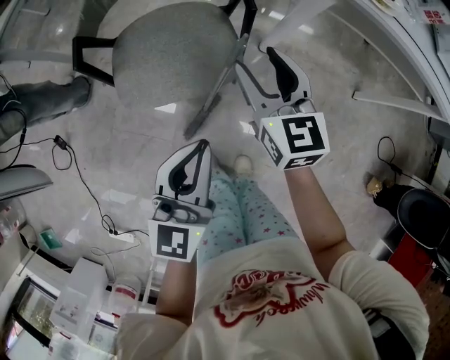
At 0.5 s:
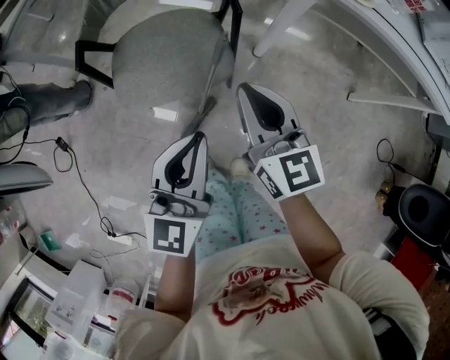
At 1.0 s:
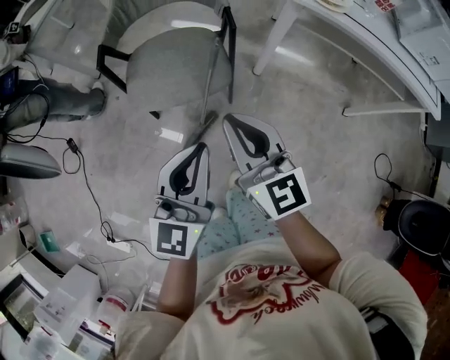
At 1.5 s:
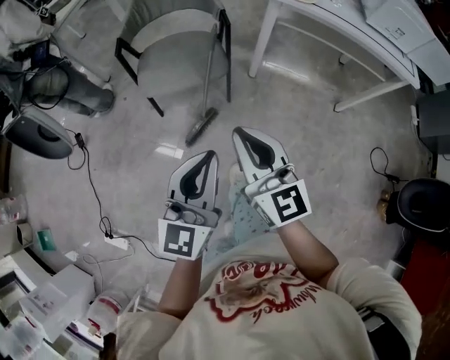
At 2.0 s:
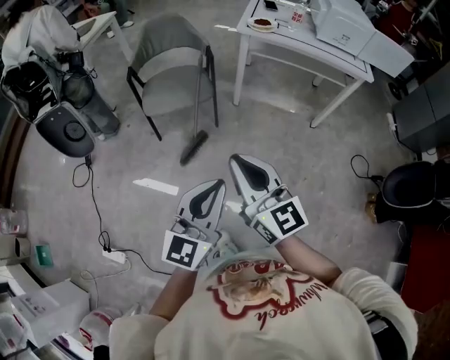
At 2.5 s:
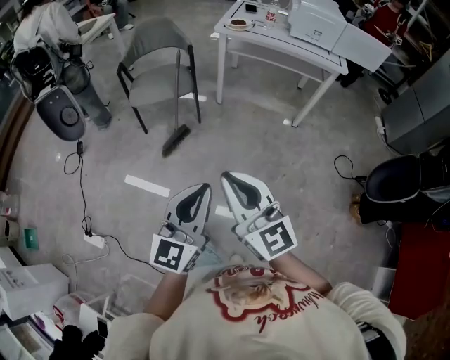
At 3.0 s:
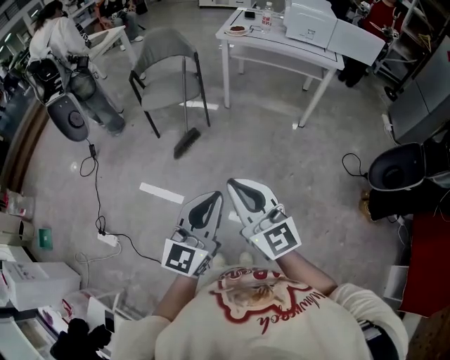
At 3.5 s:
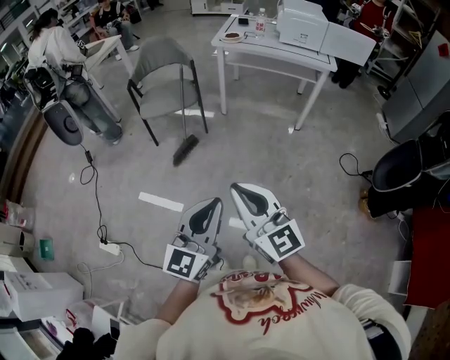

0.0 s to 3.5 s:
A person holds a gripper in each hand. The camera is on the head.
0.0 to 2.0 s: The pair of grippers is taken backward, approximately 50 cm. Both grippers move upward, about 25 cm. The right gripper changes its angle by roughly 20 degrees, and closes its fingers.
2.0 to 3.5 s: Both grippers move backward and to the right, roughly 25 cm.

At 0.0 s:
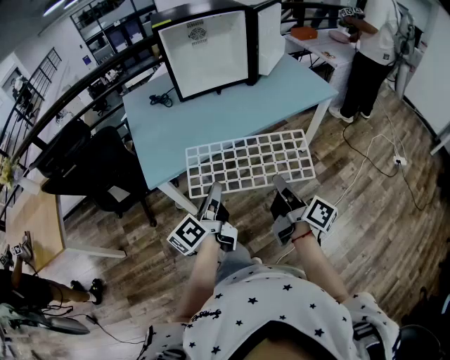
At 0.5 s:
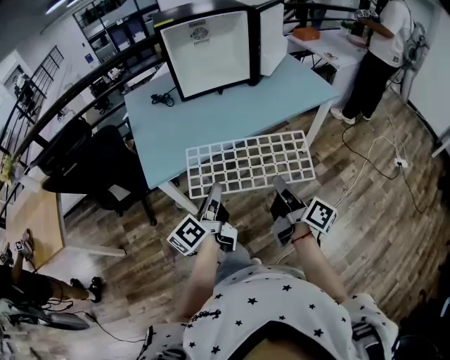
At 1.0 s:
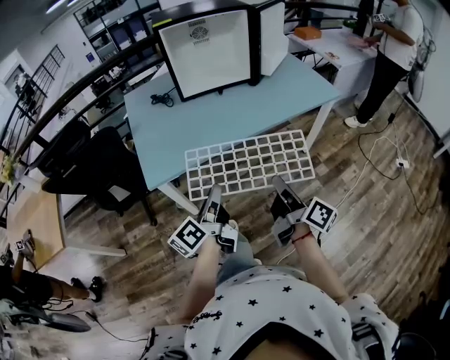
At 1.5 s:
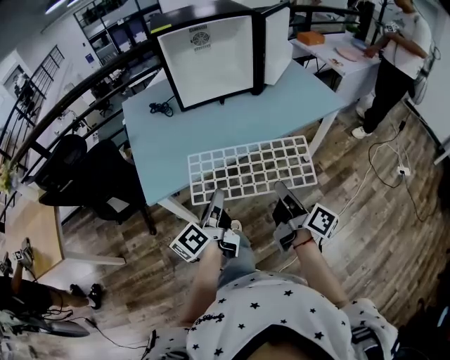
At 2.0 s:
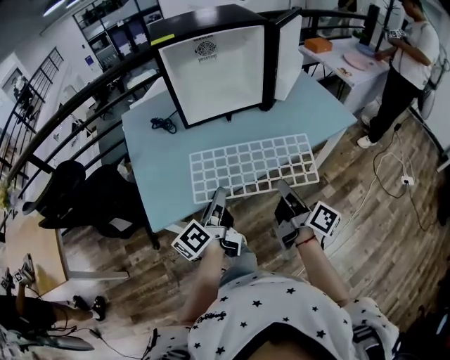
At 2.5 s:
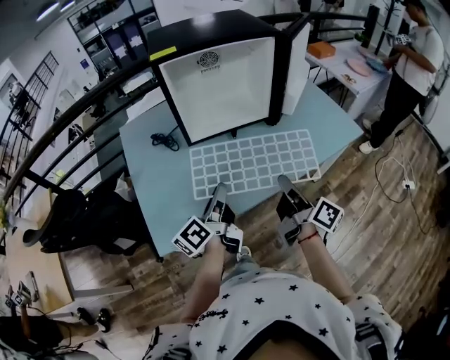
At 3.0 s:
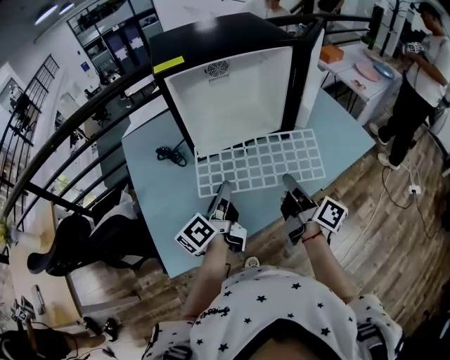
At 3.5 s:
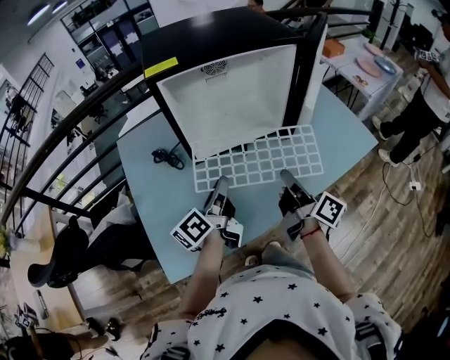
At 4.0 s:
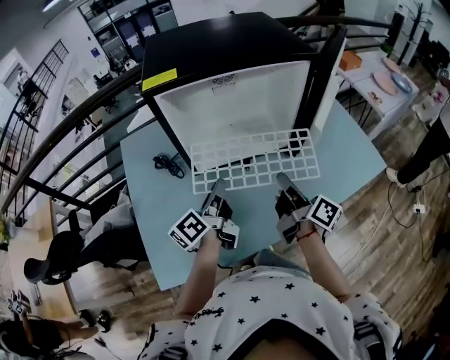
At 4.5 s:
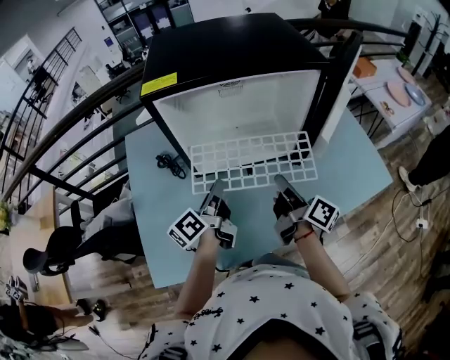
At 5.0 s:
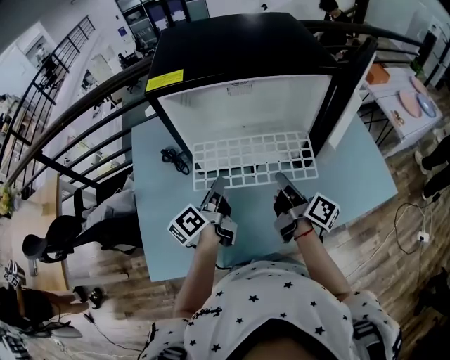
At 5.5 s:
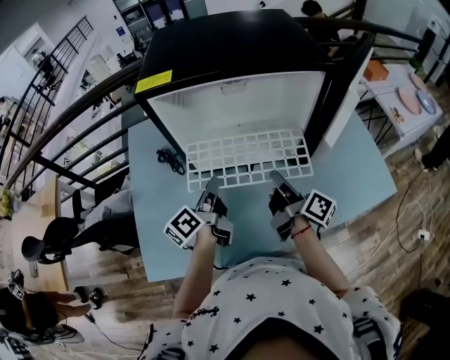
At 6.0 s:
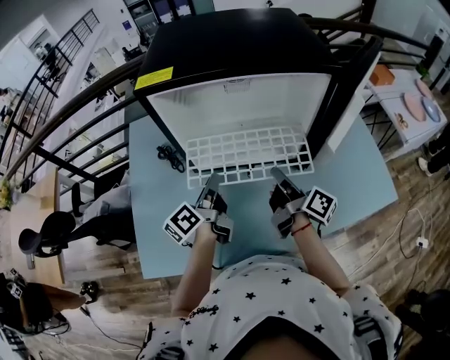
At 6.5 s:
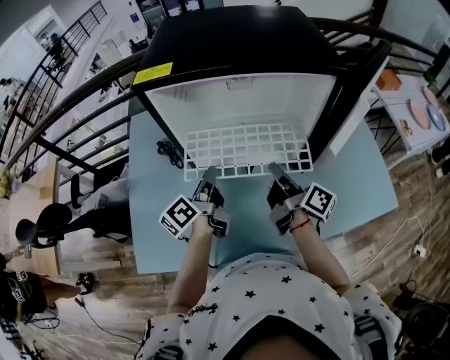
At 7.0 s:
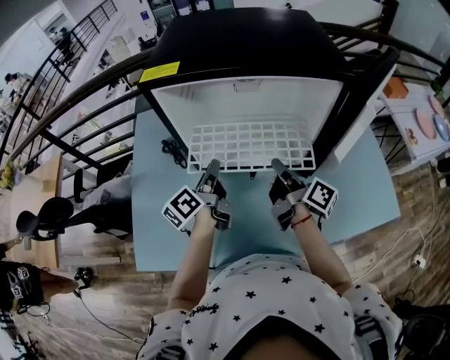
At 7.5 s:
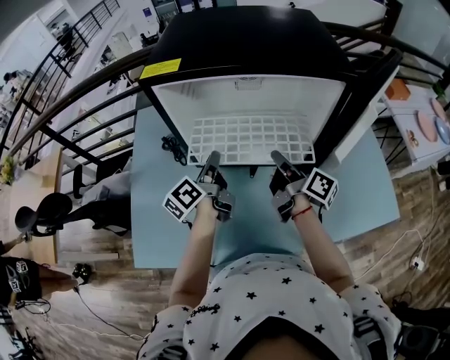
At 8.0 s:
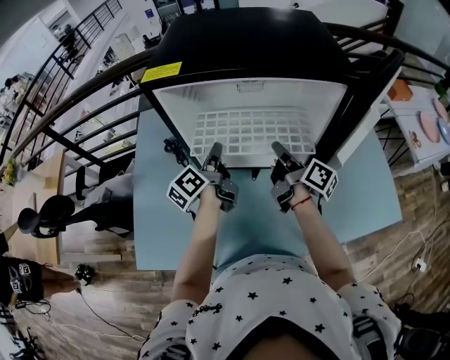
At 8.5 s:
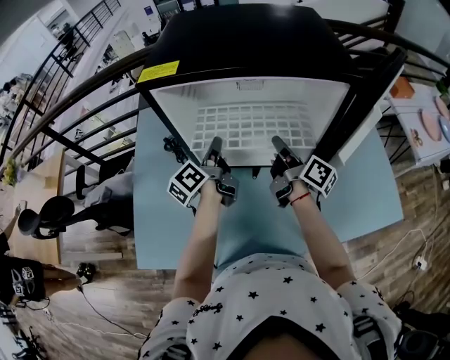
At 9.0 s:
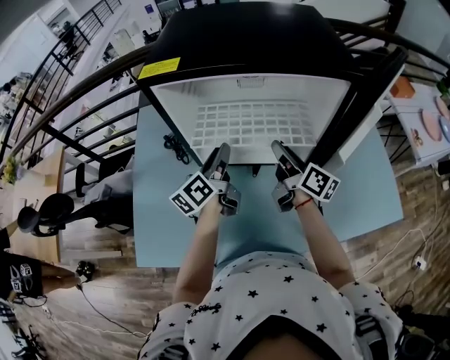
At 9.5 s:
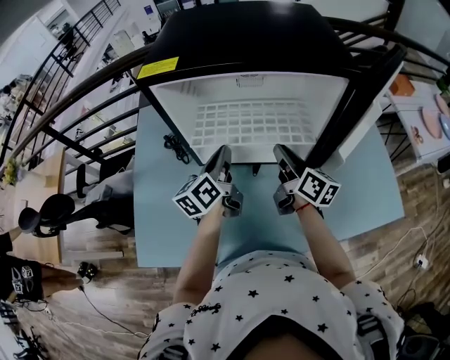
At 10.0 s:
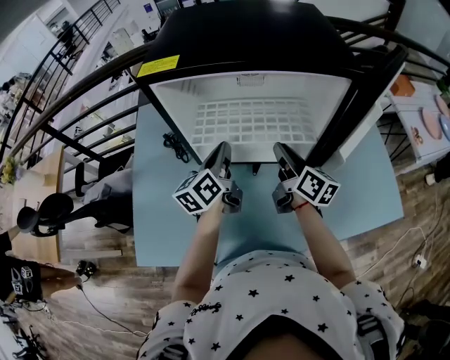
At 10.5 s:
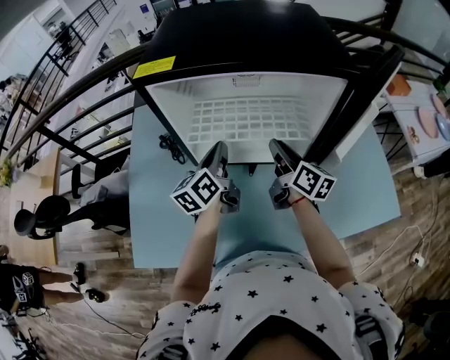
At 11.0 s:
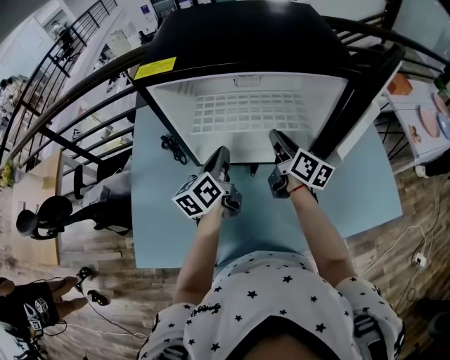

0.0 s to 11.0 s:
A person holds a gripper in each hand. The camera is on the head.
0.0 to 2.0 s: The two grippers go some 20 cm forward.
2.0 to 3.5 s: Both grippers move forward, roughly 25 cm.
3.5 to 5.5 s: The right gripper heads forward, covering approximately 10 cm. Meanwhile the left gripper is displaced forward by roughly 10 cm.
5.5 to 7.5 s: The two grippers go approximately 5 cm forward.
7.5 to 9.0 s: The grippers make only small movements.
9.0 to 11.0 s: The left gripper closes up.

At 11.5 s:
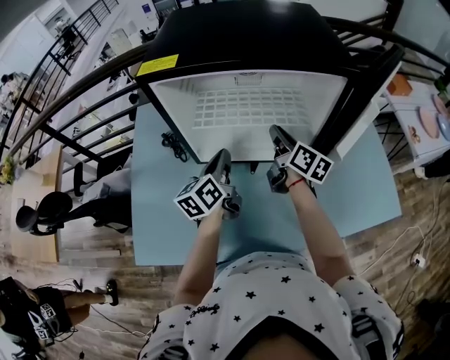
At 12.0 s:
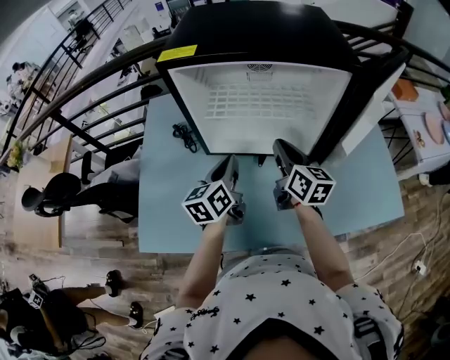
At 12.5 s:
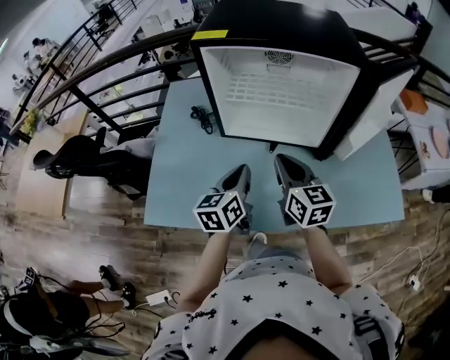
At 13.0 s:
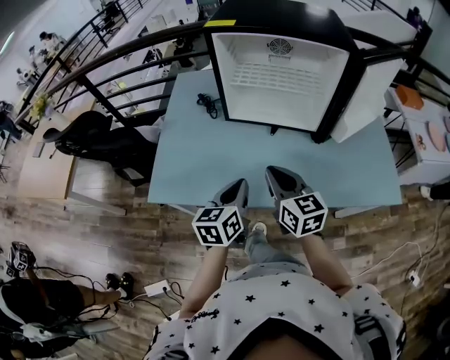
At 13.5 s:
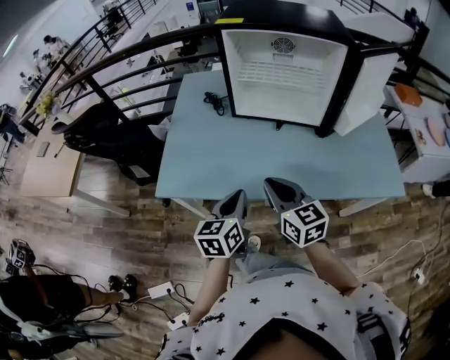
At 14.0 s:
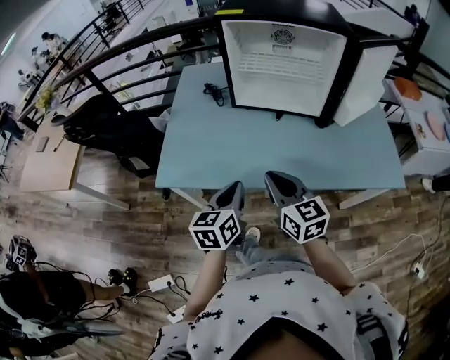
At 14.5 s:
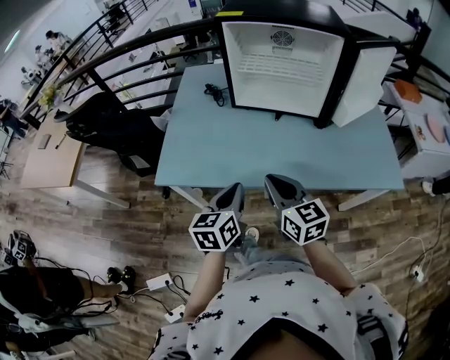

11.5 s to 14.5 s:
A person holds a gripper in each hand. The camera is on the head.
11.5 to 13.0 s: The grippers both shift backward by approximately 30 cm. The right gripper swivels roughly 40 degrees.
13.0 to 14.5 s: Both grippers travel together backward, about 10 cm.

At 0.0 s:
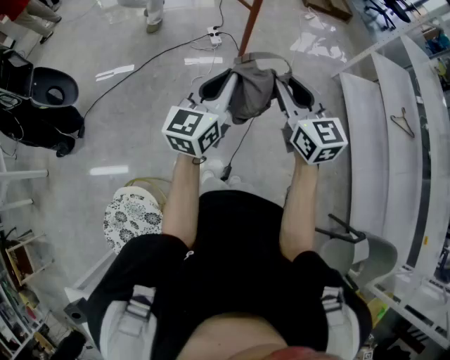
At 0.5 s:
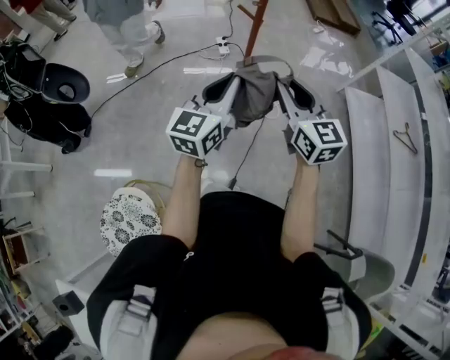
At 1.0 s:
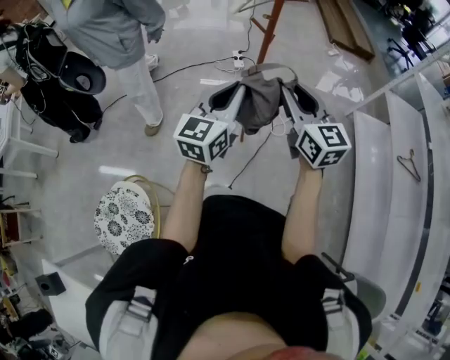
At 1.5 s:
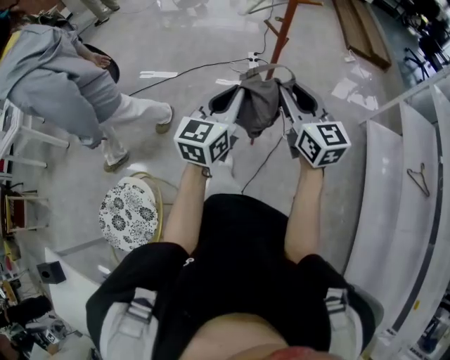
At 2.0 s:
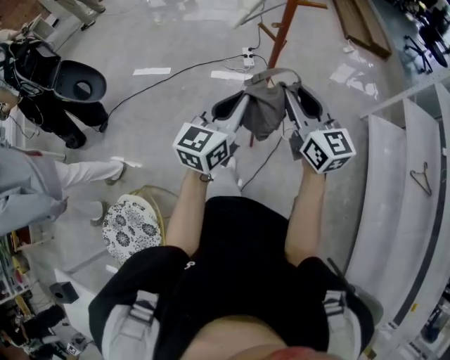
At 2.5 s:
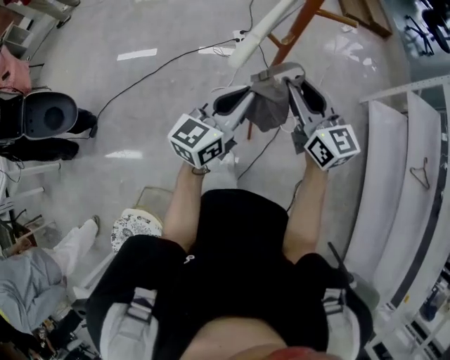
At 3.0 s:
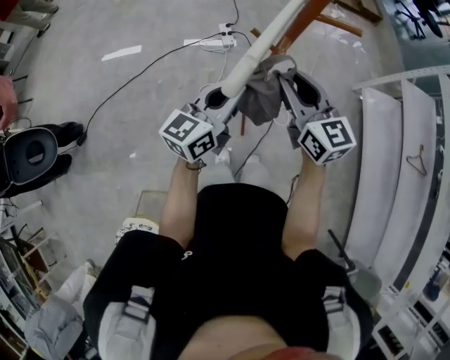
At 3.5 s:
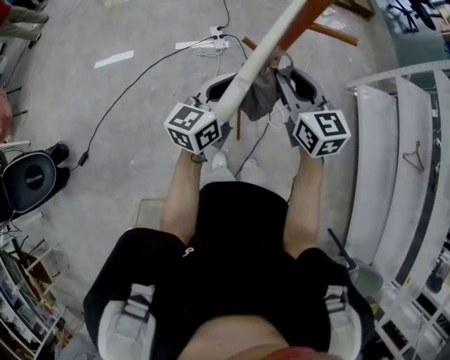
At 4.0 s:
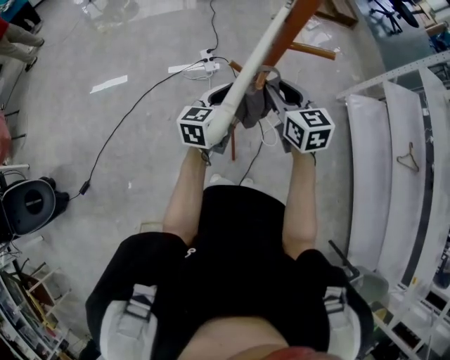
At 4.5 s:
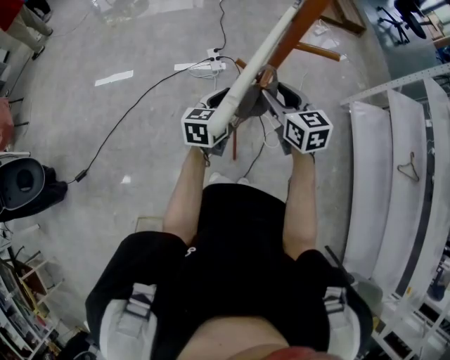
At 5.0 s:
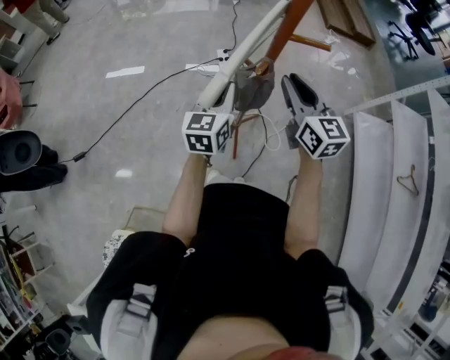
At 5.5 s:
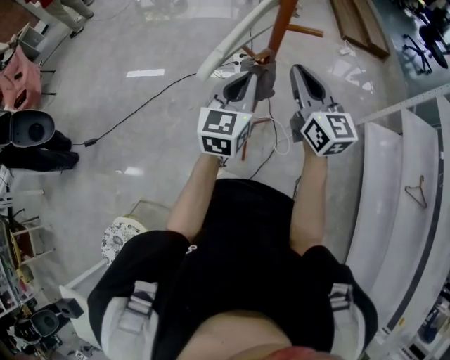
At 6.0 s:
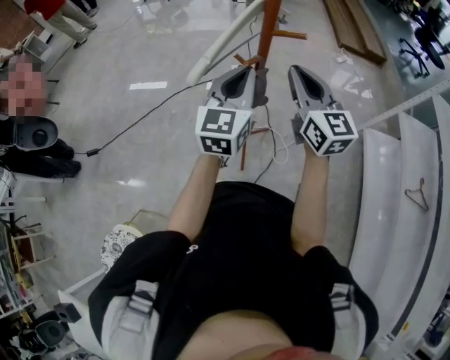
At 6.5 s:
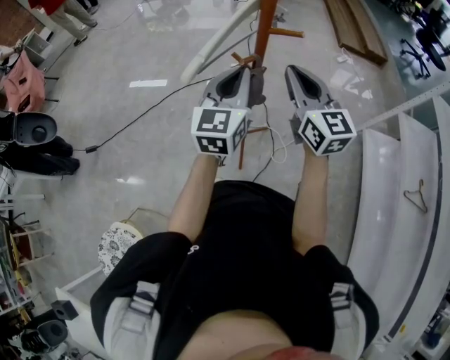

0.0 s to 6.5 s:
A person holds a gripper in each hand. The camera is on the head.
0.0 to 2.0 s: Both grippers move forward, roughly 10 cm.
2.0 to 4.5 s: Both grippers travel together forward and downward, some 30 cm. The right gripper swivels approximately 20 degrees; the left gripper changes its angle by about 20 degrees.
4.5 to 6.5 s: The two grippers go about 20 cm upward and backward. The left gripper swivels some 30 degrees, while the right gripper swivels roughly 30 degrees, and closes up.

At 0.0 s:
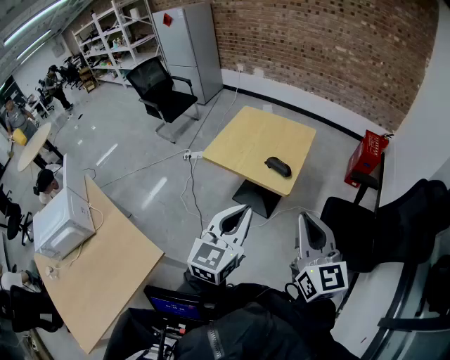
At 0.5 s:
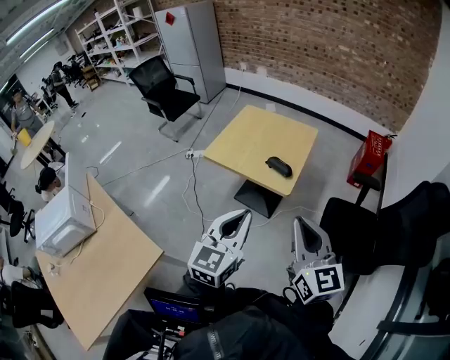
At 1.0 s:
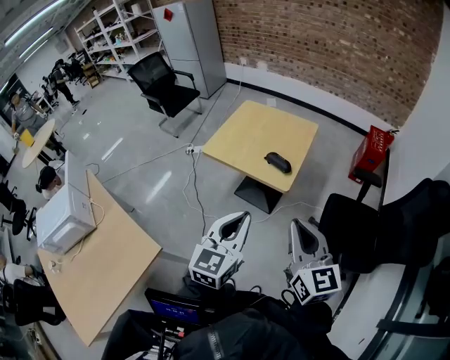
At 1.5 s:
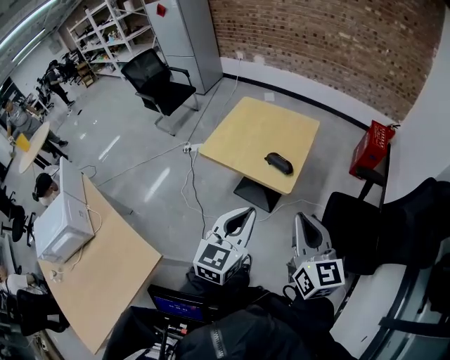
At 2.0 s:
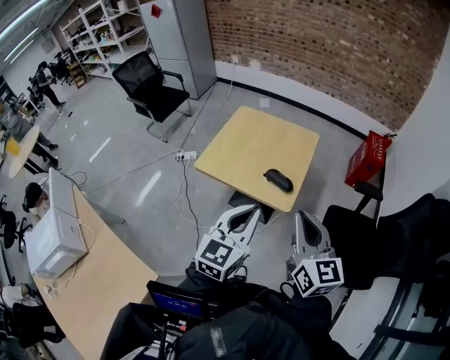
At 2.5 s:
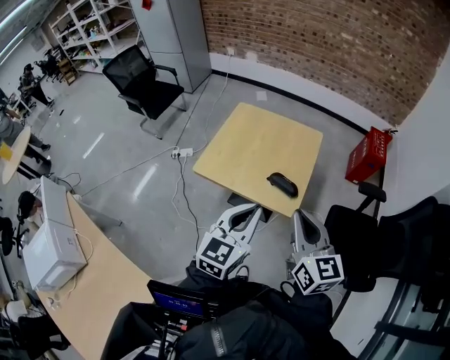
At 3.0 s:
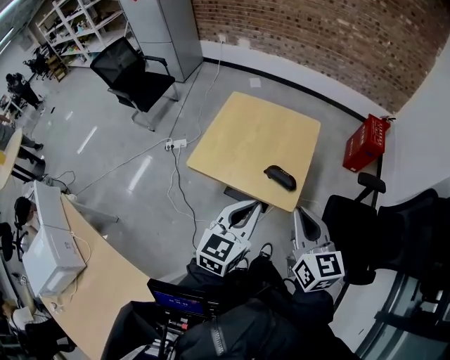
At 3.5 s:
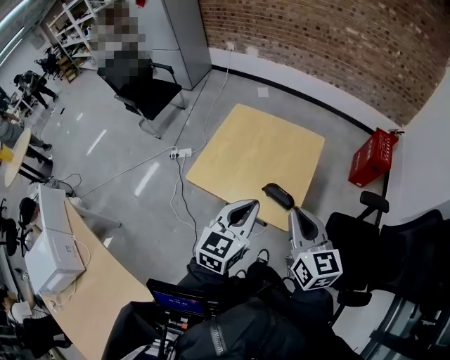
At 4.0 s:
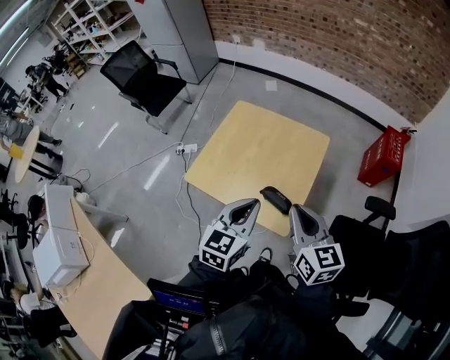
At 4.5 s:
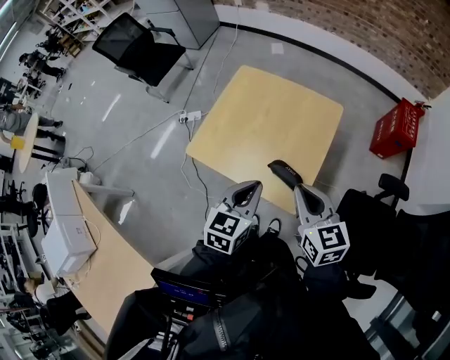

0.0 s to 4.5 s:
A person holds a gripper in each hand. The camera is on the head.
0.0 to 2.0 s: Both grippers travel together forward, about 15 cm.
2.0 to 4.5 s: The two grippers go some 30 cm forward and downward. The right gripper changes its angle by some 20 degrees, while the left gripper swivels approximately 20 degrees.
